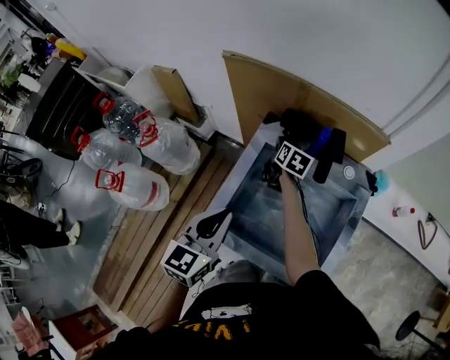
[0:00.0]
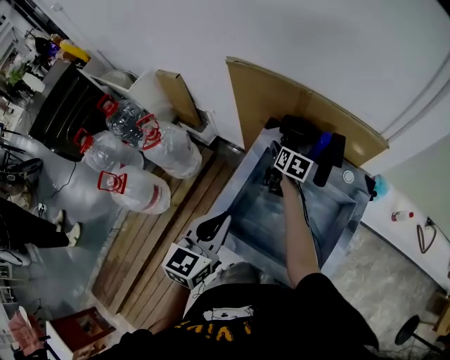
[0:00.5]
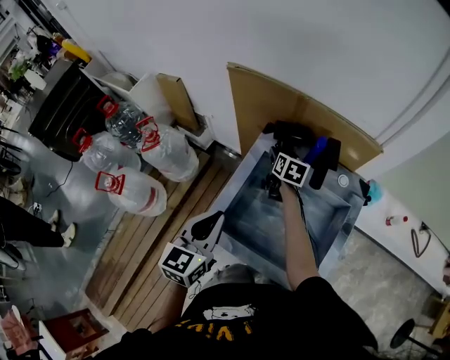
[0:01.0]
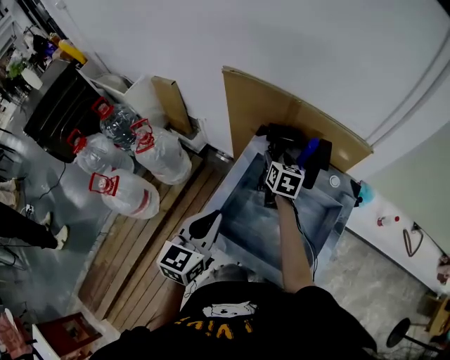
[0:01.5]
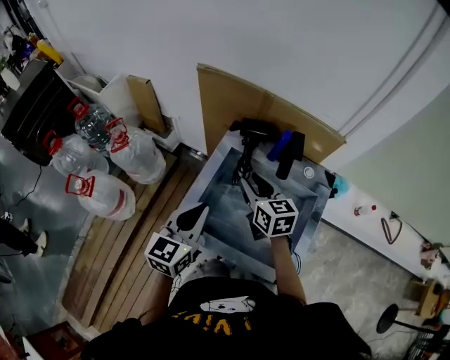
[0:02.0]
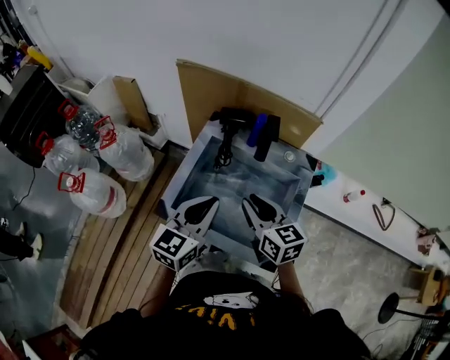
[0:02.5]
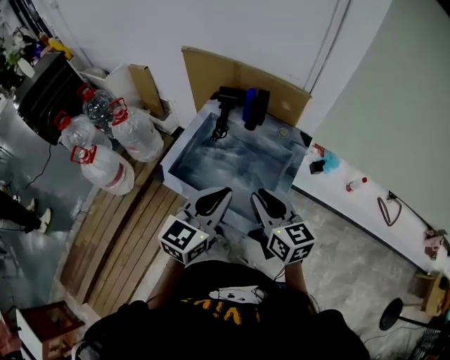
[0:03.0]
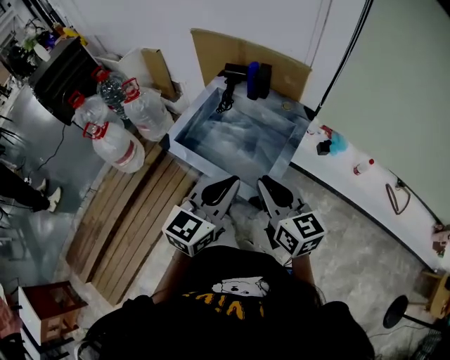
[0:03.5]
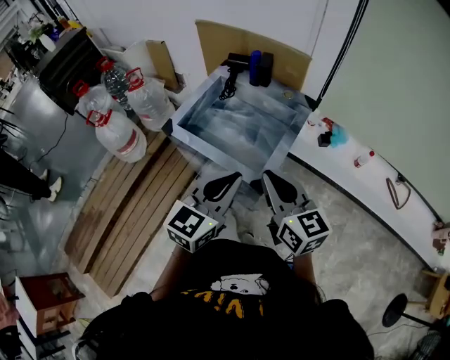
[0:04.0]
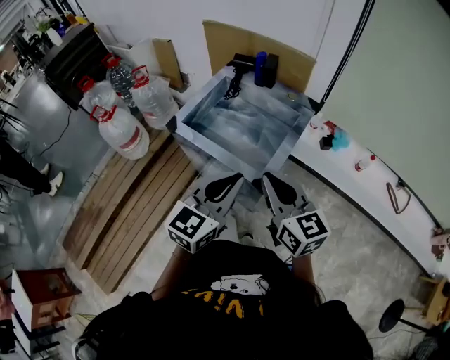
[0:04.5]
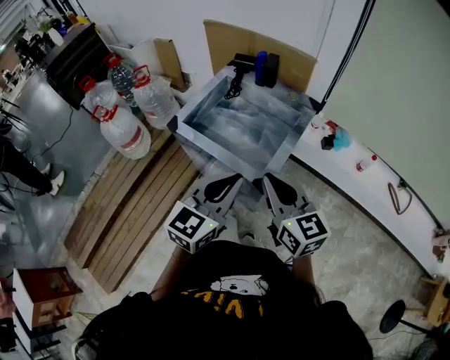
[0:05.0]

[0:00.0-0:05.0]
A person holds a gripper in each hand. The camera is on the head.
0:00.0 to 0:02.5: The right gripper is displaced backward and upward by some 35 cm, rotates some 30 degrees, and opens and closes again. The left gripper goes roughly 10 cm to the right.
0:02.5 to 0:05.0: The right gripper goes roughly 25 cm backward, while the left gripper moves backward and to the right, some 30 cm.

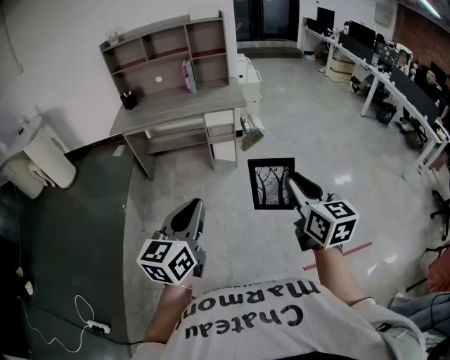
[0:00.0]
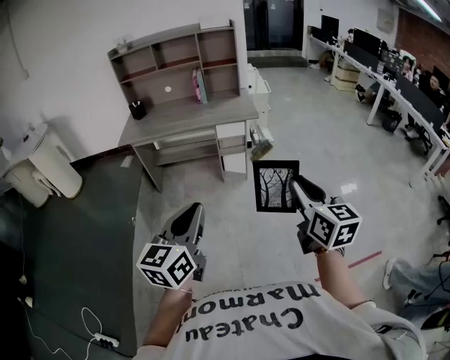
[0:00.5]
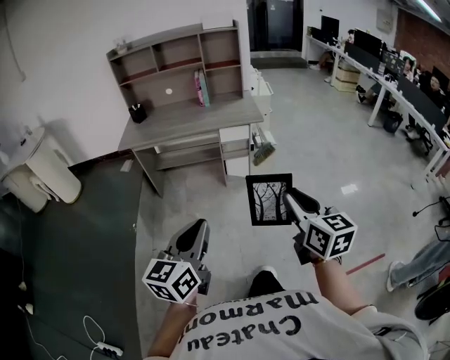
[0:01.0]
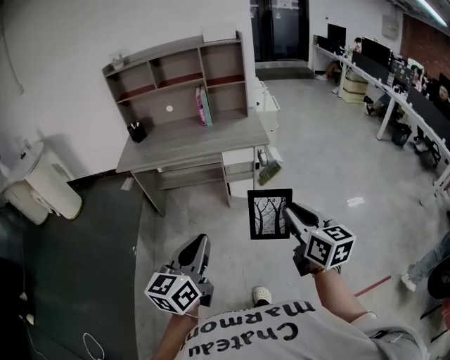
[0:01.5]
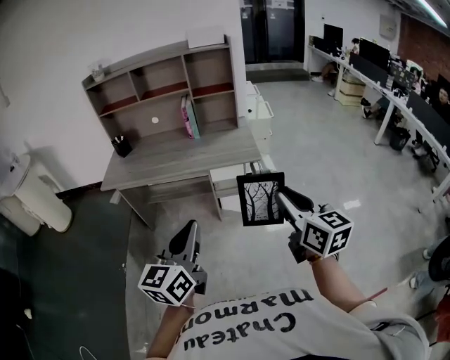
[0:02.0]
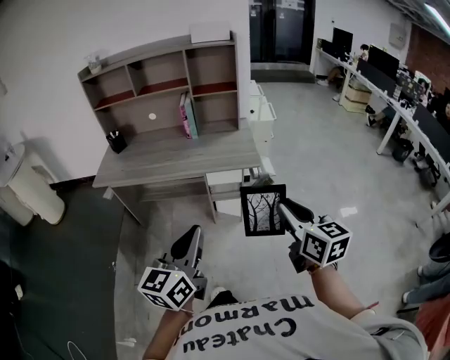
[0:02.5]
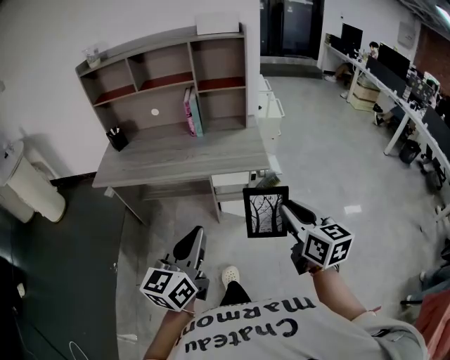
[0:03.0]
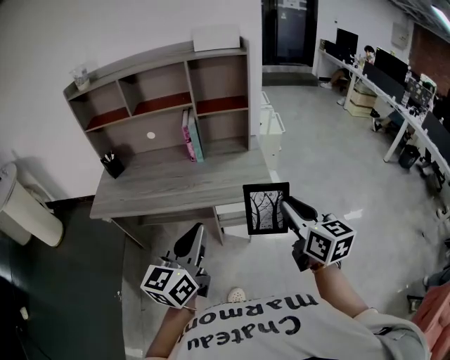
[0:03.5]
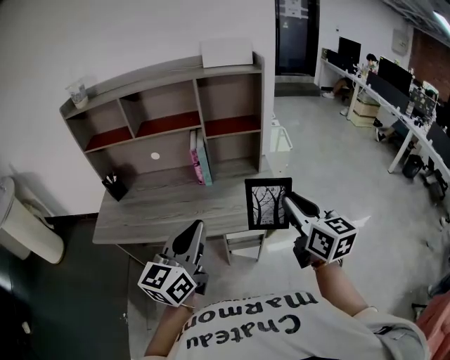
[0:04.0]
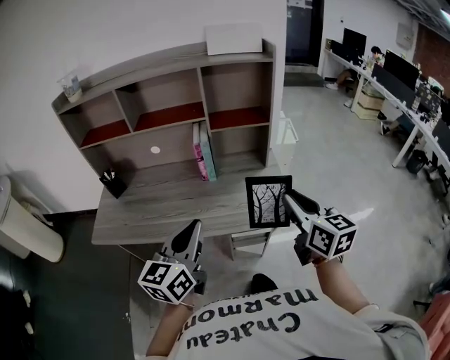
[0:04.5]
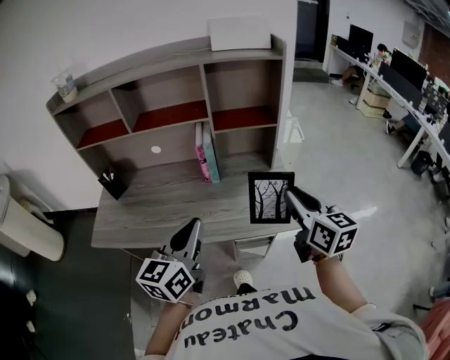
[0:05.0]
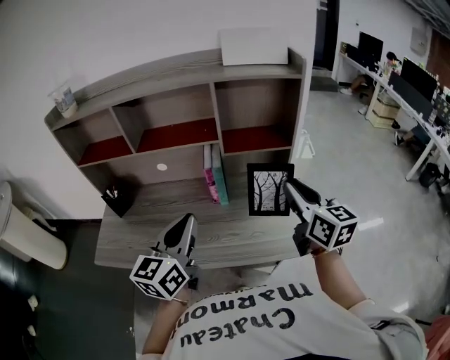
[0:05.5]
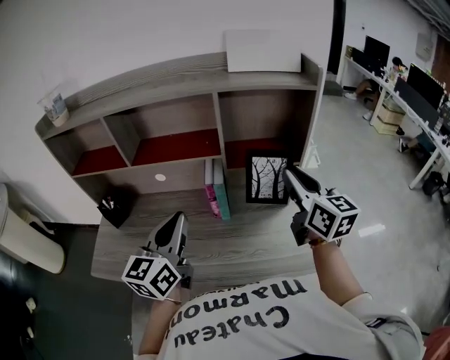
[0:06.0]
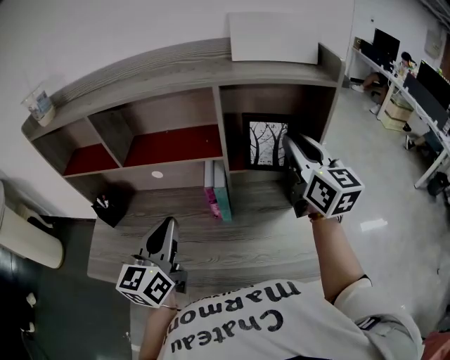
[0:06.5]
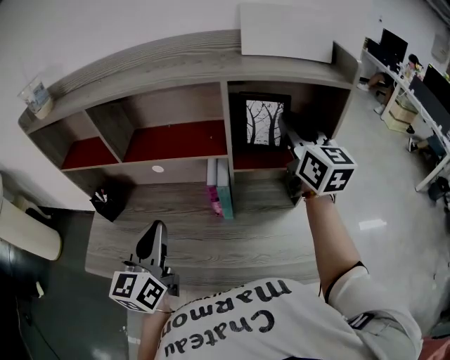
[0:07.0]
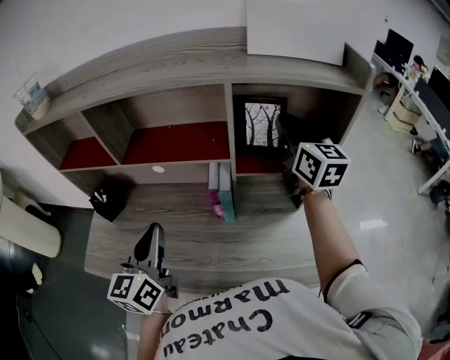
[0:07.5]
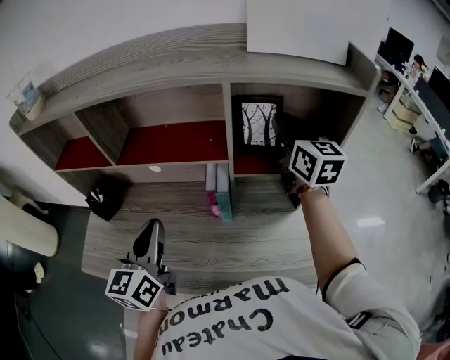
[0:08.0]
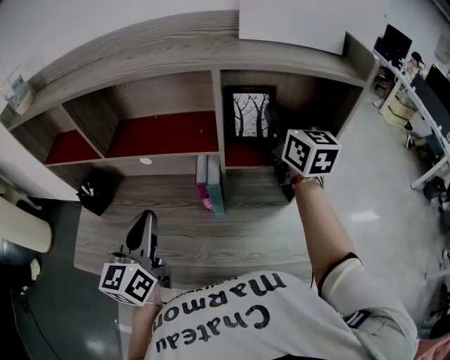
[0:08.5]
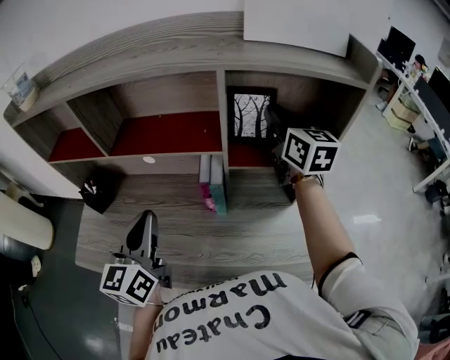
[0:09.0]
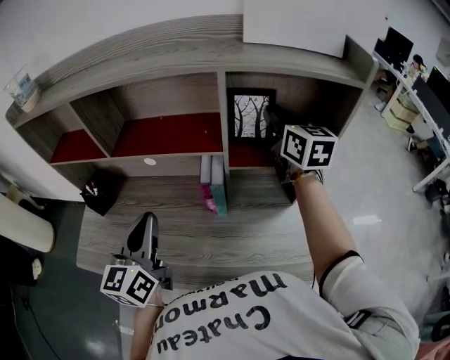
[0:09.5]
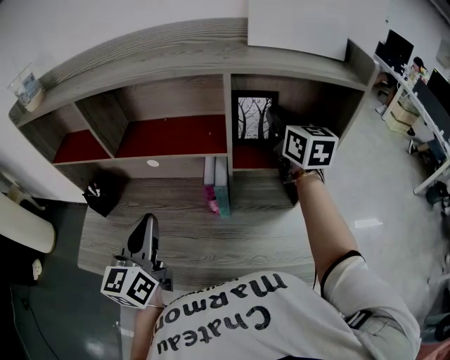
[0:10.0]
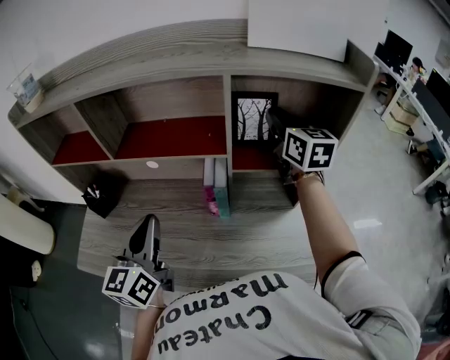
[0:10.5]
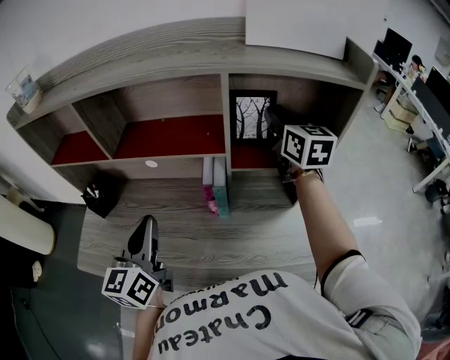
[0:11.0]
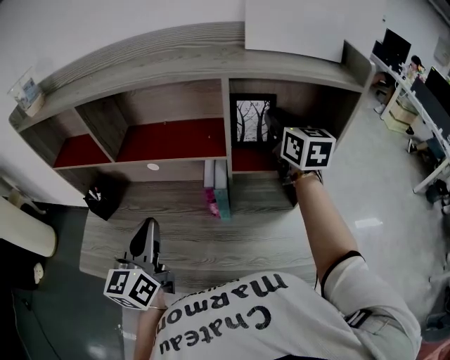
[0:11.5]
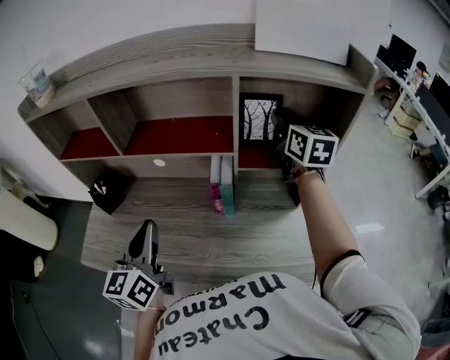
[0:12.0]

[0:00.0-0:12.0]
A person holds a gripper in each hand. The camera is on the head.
0:00.0 to 0:02.0: The two grippers go some 30 cm forward.
0:02.0 to 0:04.0: Both grippers move forward, approximately 30 cm.
0:04.0 to 0:06.0: The right gripper is displaced forward by about 30 cm. The left gripper travels forward and to the left by roughly 30 cm.
0:06.0 to 0:08.0: The right gripper goes about 20 cm forward, while the left gripper travels to the left and forward by some 10 cm.
0:08.0 to 0:12.0: There are only small adjustments of the grippers.

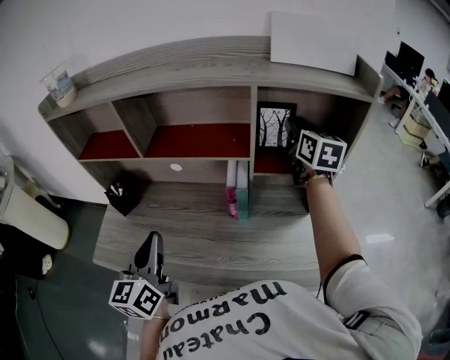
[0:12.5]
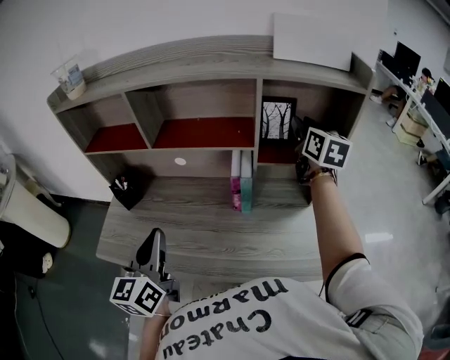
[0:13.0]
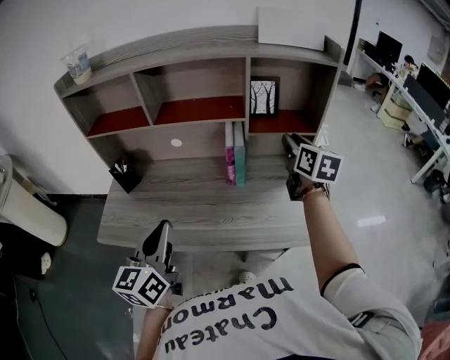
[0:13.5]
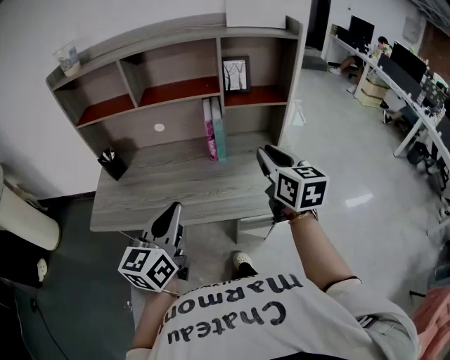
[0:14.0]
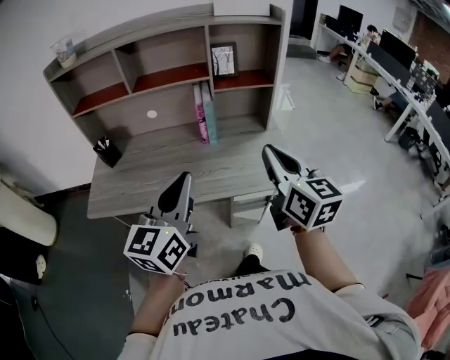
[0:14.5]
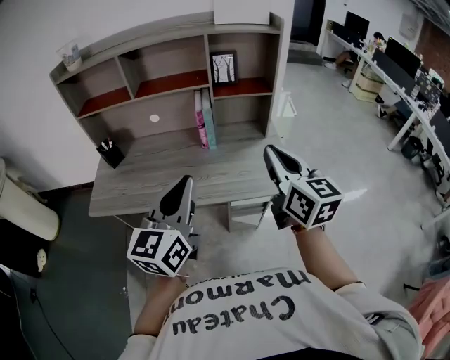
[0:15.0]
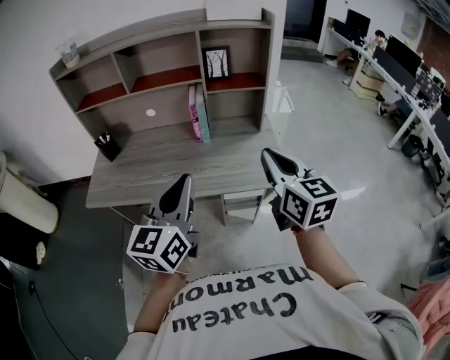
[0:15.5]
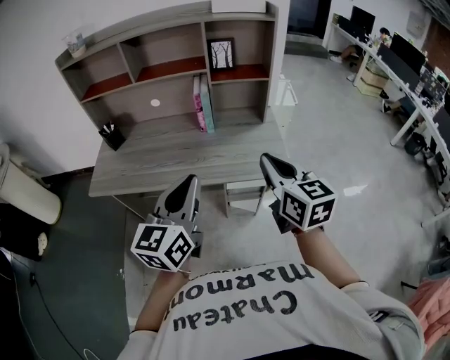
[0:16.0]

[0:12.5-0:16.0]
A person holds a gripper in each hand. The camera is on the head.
0:12.5 to 0:14.5: The left gripper is displaced backward and to the right by approximately 25 cm, and swivels some 30 degrees; the right gripper is displaced backward by some 50 cm, and closes.
0:14.5 to 0:16.0: The left gripper travels backward and to the right by roughly 10 cm; the right gripper travels backward by roughly 5 cm.

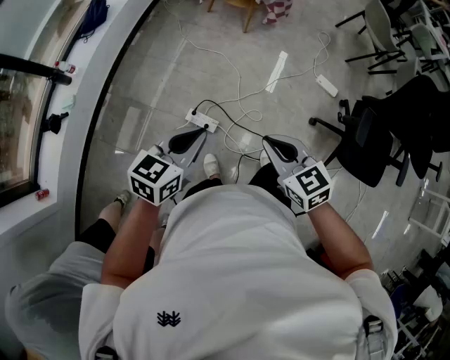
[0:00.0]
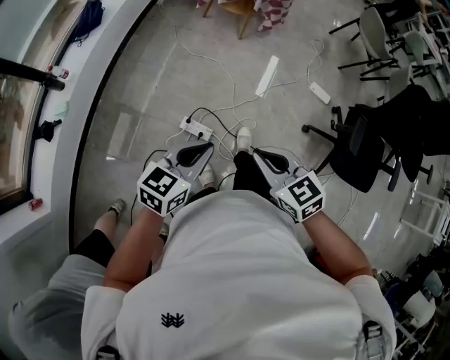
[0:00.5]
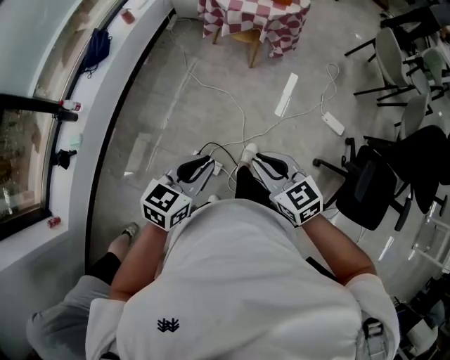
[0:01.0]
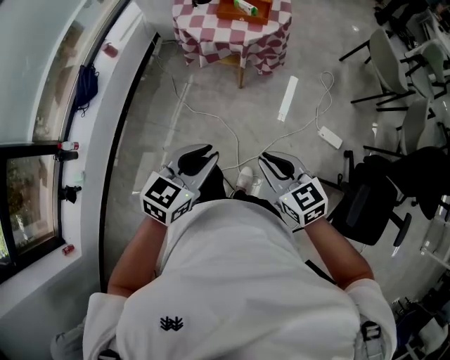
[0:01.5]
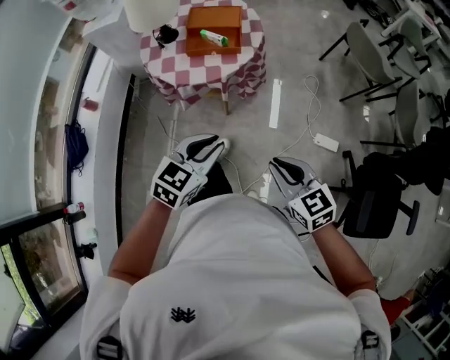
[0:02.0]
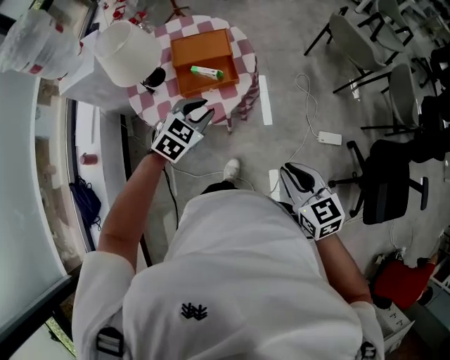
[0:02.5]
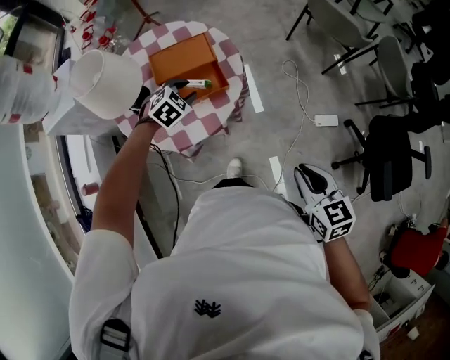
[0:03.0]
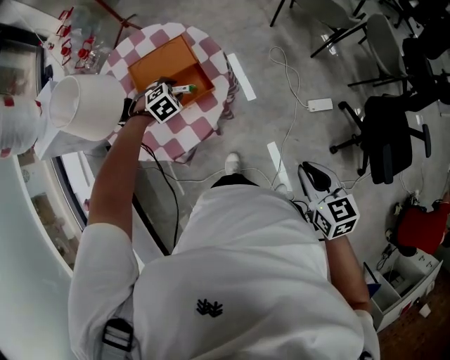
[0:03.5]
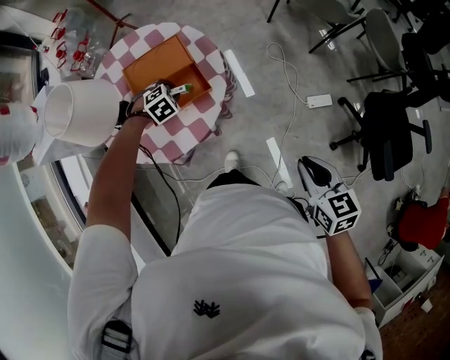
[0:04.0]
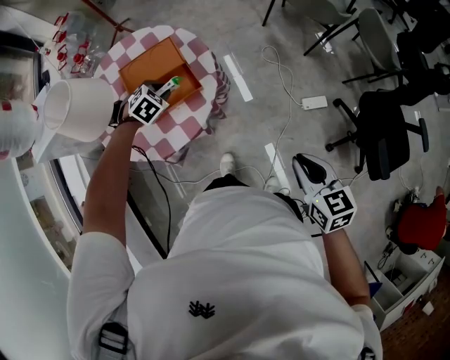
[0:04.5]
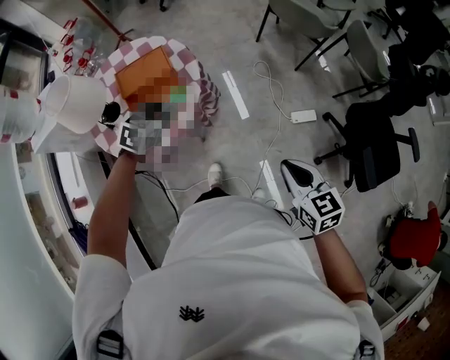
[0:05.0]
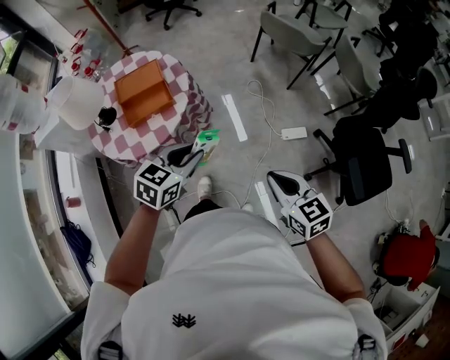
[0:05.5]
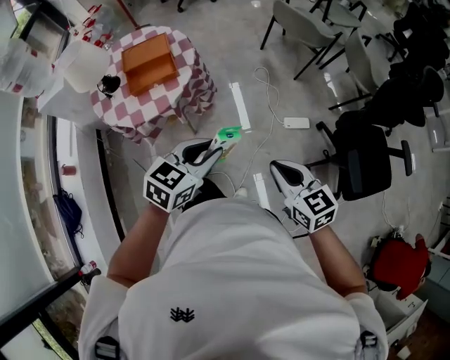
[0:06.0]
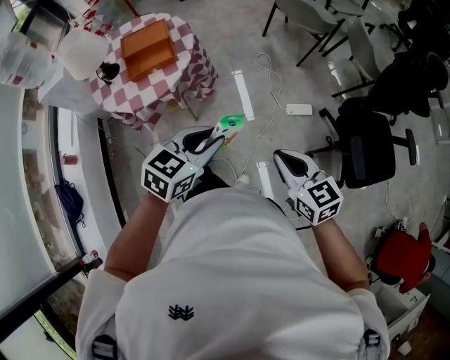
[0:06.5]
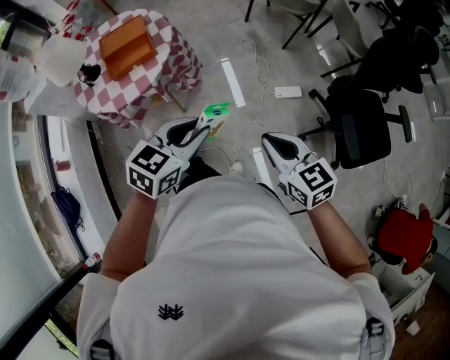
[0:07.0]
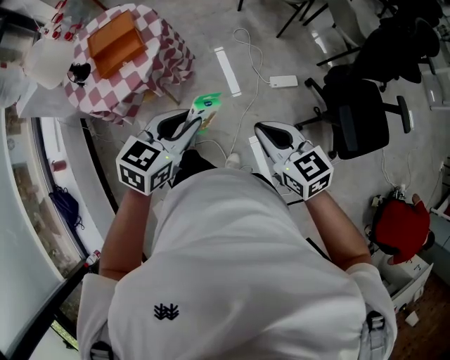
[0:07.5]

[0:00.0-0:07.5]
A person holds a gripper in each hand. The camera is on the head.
0:00.0 to 0:02.0: The two grippers travel together, forward, about 60 cm. The left gripper swivels approximately 30 degrees.
0:02.0 to 0:04.0: The right gripper moves approximately 15 cm, and changes its angle by about 40 degrees. The left gripper ends up approximately 50 cm from where it was, and tilts its fingers approximately 40 degrees downward.
0:04.0 to 0:05.5: The right gripper goes about 15 cm to the right and backward. The left gripper heads to the right, backward and upward, covering approximately 40 cm, and points its fingers approximately 40 degrees further upward.
0:05.5 to 0:07.5: The left gripper is displaced to the right and backward by approximately 15 cm. Meanwhile the right gripper heads to the right, covering approximately 5 cm.
